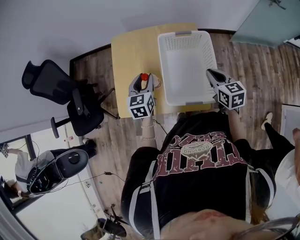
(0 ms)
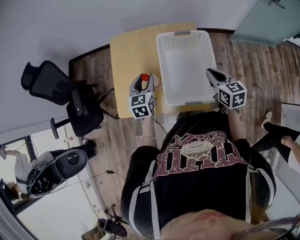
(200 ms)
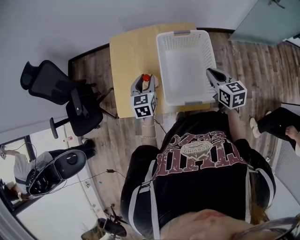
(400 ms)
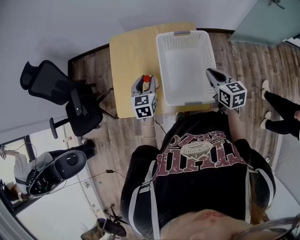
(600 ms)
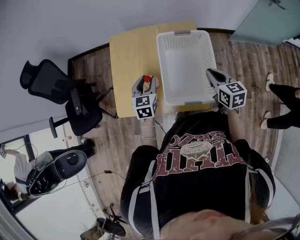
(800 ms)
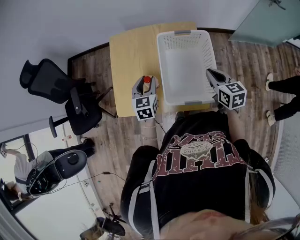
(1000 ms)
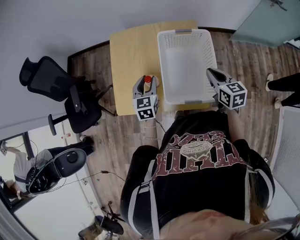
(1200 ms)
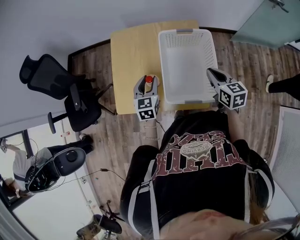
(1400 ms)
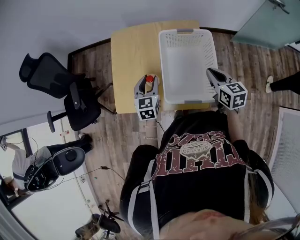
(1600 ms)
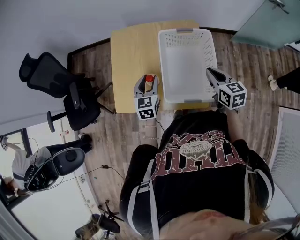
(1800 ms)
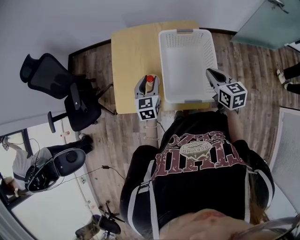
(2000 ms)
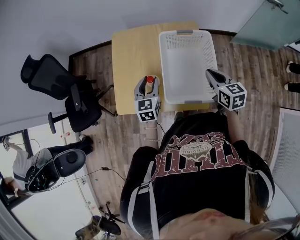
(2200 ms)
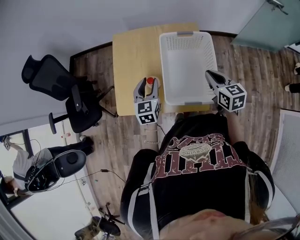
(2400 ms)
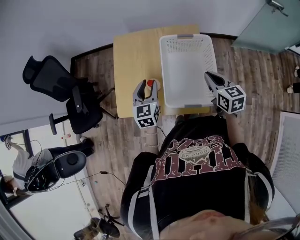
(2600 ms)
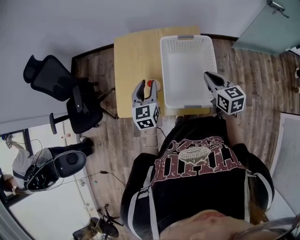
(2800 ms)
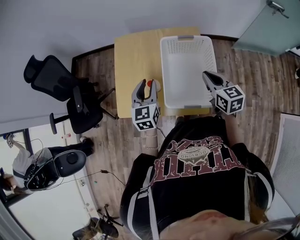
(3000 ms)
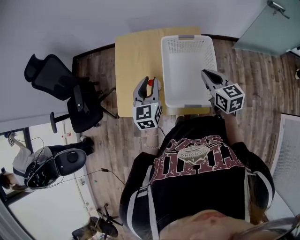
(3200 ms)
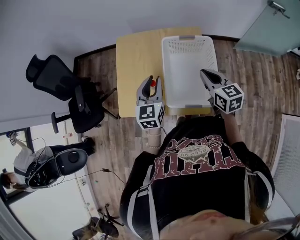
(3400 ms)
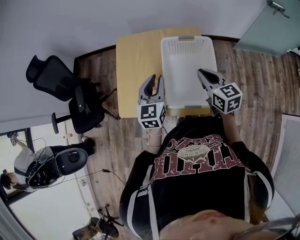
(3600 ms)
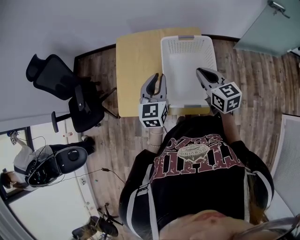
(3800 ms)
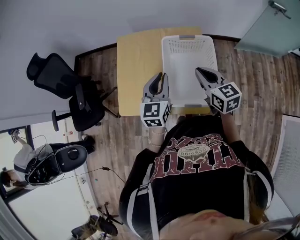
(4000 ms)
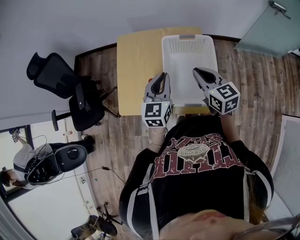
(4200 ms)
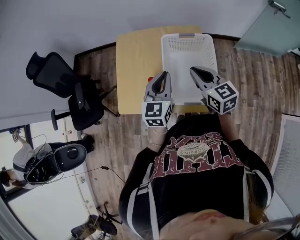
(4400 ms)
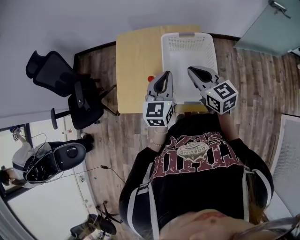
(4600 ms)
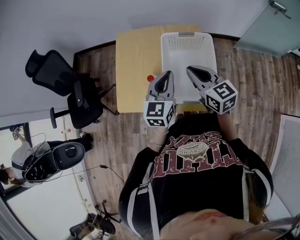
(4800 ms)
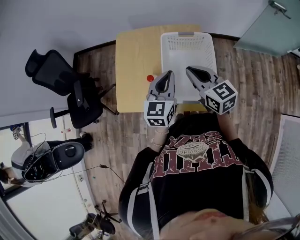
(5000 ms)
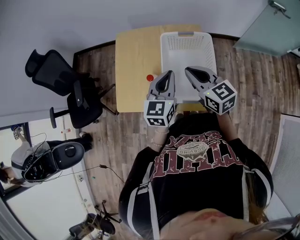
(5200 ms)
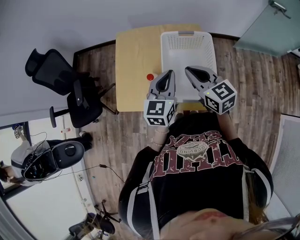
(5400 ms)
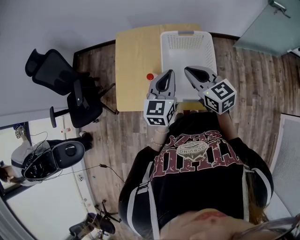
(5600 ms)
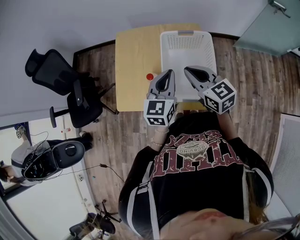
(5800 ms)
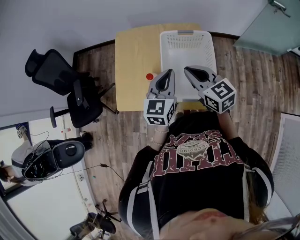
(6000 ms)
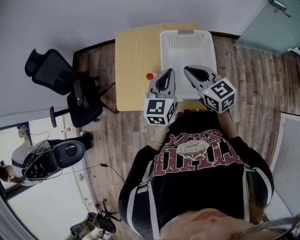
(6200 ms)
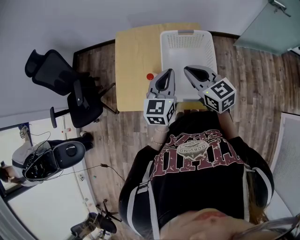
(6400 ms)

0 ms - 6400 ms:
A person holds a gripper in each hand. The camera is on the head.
0 ms - 1600 ms: There are only small adjustments of the grippers.
1600 ms - 3200 ms: The left gripper is displaced upward by roughly 10 cm.
3200 ms - 4800 ms: The left gripper moves to the right, approximately 10 cm, and closes its fingers. The right gripper heads to the left and upward, covering approximately 10 cm.
4800 ms - 6400 ms: There are only small adjustments of the grippers.

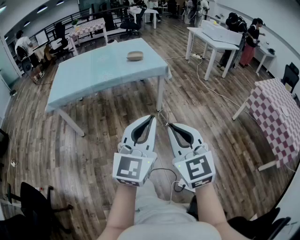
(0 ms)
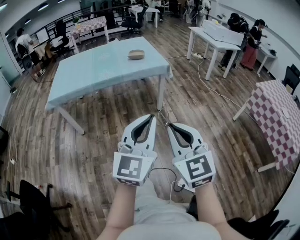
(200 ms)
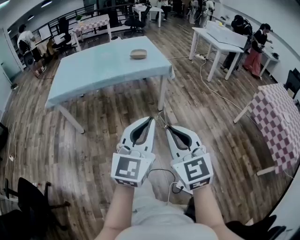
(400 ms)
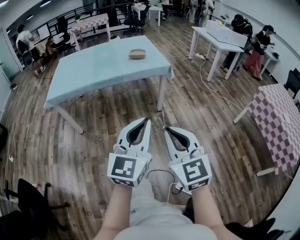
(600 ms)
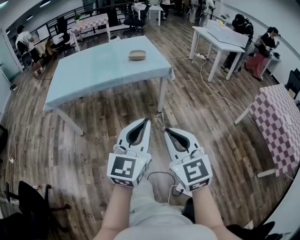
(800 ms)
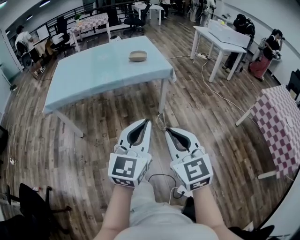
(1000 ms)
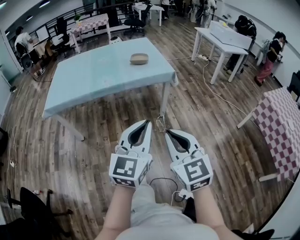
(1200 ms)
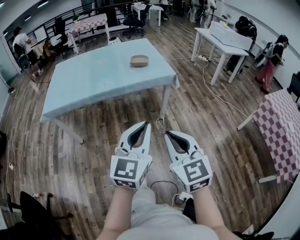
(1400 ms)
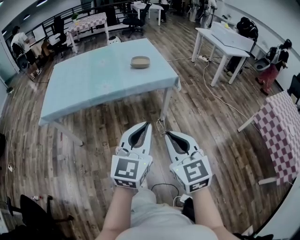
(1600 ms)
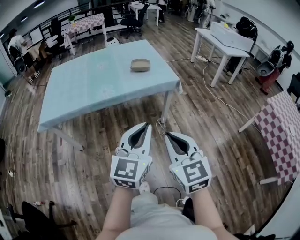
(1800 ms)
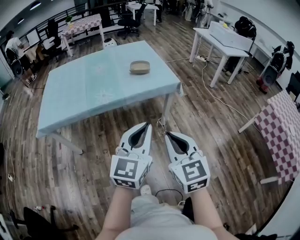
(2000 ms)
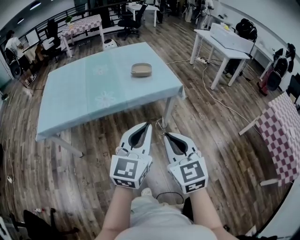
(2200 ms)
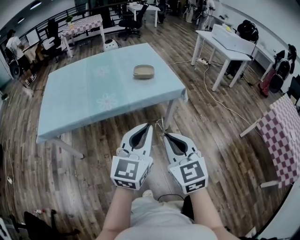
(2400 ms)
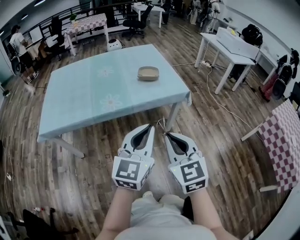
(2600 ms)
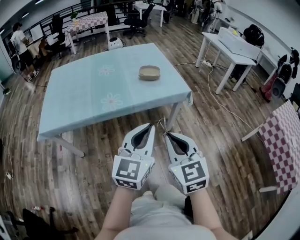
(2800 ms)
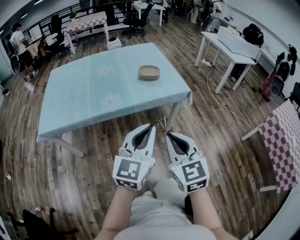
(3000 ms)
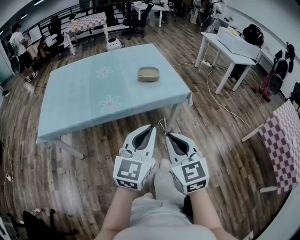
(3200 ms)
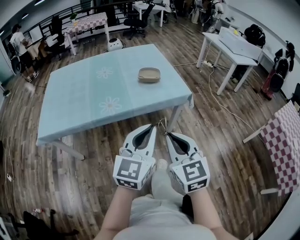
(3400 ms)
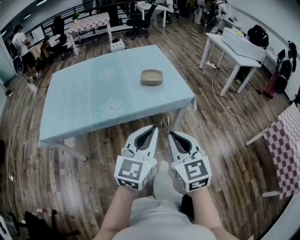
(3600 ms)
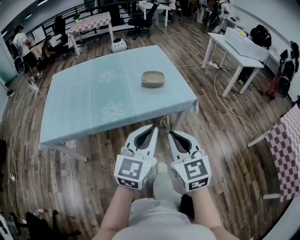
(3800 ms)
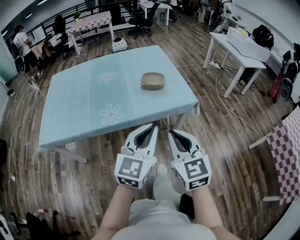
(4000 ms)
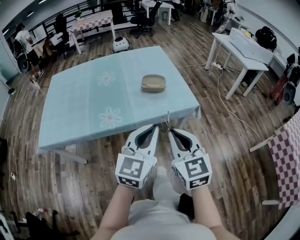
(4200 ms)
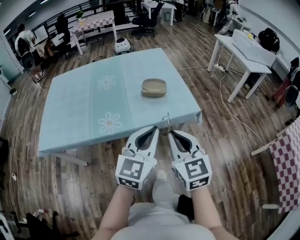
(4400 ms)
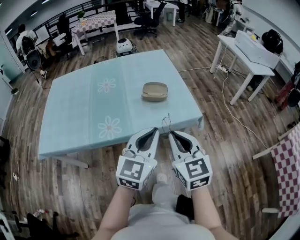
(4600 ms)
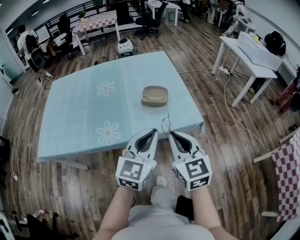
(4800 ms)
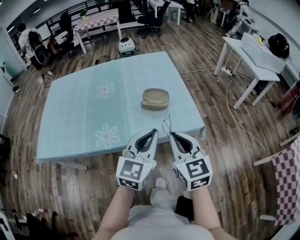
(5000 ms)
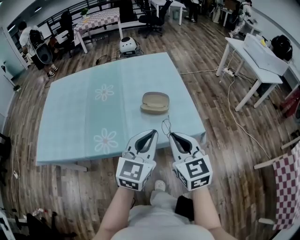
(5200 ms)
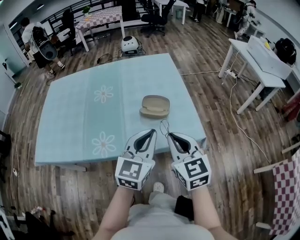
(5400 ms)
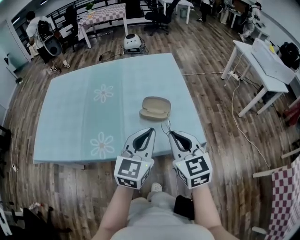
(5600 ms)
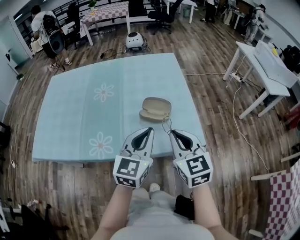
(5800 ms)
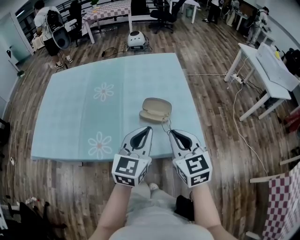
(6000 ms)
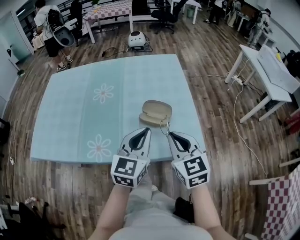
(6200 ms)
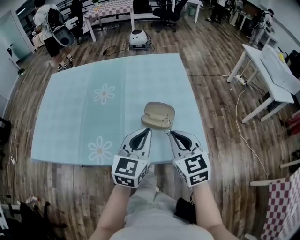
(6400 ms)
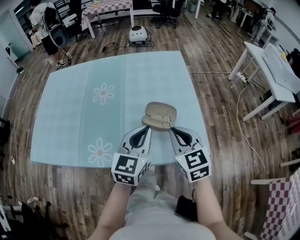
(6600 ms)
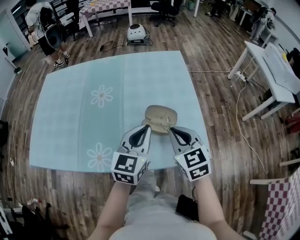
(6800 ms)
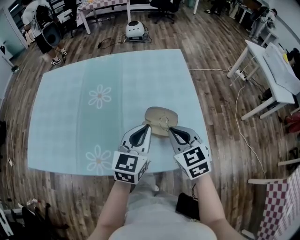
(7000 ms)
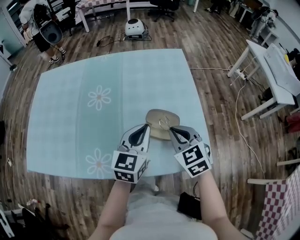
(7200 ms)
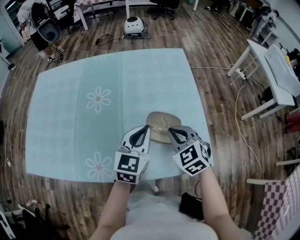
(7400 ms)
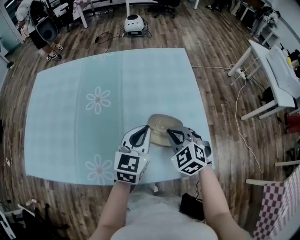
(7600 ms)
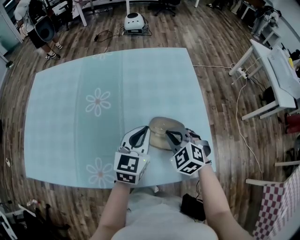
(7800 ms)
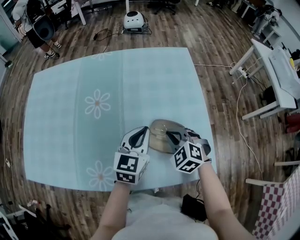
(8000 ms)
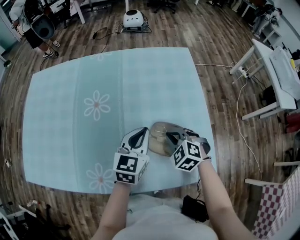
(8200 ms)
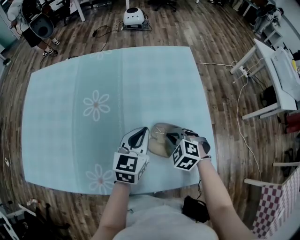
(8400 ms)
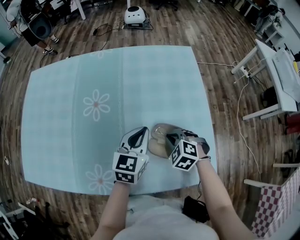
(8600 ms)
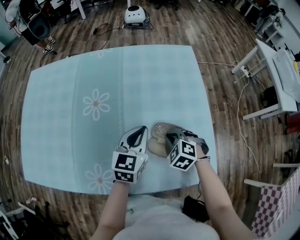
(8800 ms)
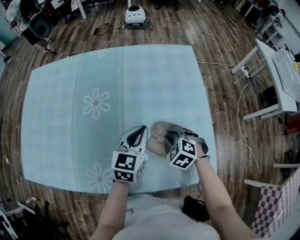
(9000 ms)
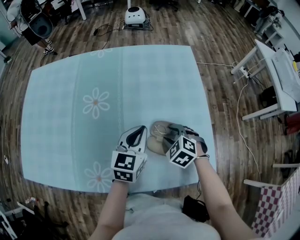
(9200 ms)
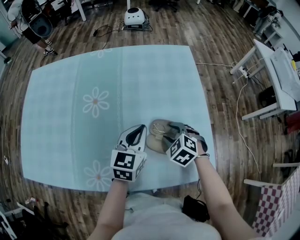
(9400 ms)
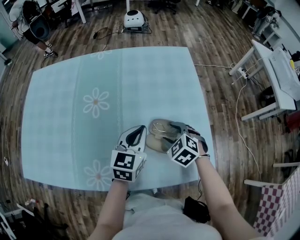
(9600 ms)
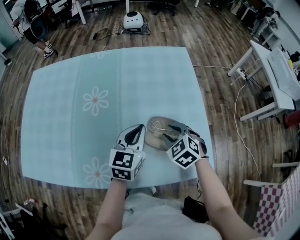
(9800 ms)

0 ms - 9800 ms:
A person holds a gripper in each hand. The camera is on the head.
0 ms - 1400 ms: Both grippers move forward, about 15 cm.
1400 ms - 2800 ms: The grippers both shift forward and to the left by roughly 20 cm.
2800 ms - 4200 ms: Both grippers travel together forward, approximately 15 cm.
4200 ms - 5600 ms: The two grippers go roughly 25 cm forward.
5600 ms - 7000 ms: Both grippers move forward and downward, some 15 cm.
7000 ms - 8400 ms: The left gripper moves forward and downward, approximately 15 cm. Meanwhile the right gripper travels downward and forward by approximately 15 cm, and rotates about 40 degrees.
8400 ms - 9800 ms: The right gripper opens its fingers.

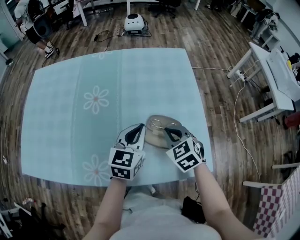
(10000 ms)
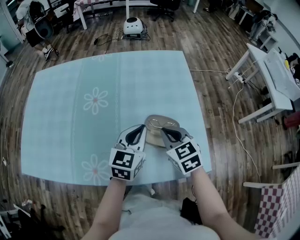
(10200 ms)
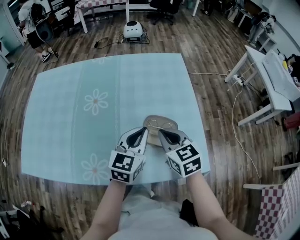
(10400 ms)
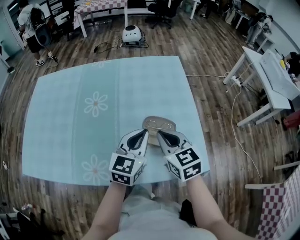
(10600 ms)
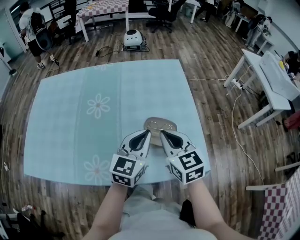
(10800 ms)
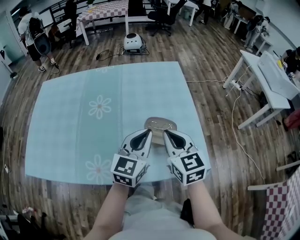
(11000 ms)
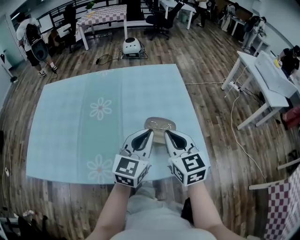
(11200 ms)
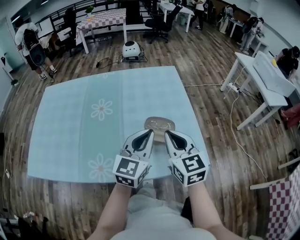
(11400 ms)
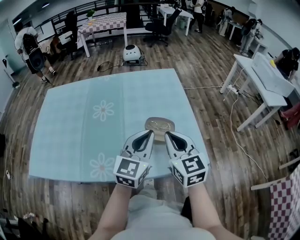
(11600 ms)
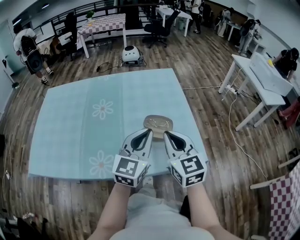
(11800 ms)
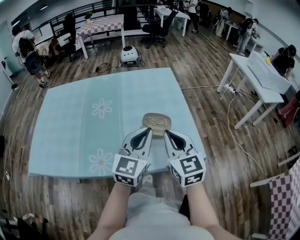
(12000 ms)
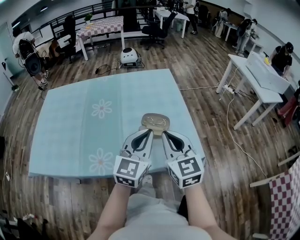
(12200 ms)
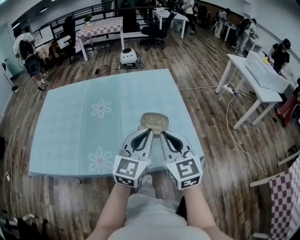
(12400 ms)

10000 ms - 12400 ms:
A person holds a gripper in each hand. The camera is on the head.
10000 ms - 11200 ms: Both grippers move upward and backward, about 15 cm. The right gripper changes its angle by approximately 30 degrees.
11200 ms - 12400 ms: The left gripper travels backward by approximately 10 cm. The right gripper is displaced backward and upward by roughly 10 cm.

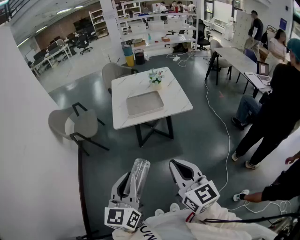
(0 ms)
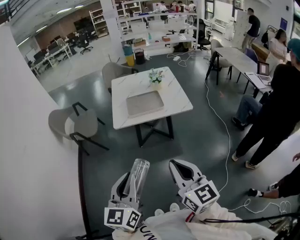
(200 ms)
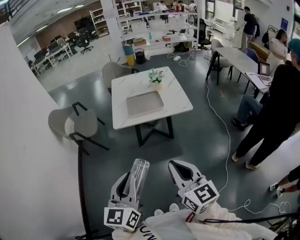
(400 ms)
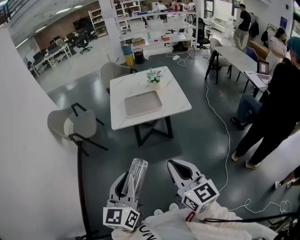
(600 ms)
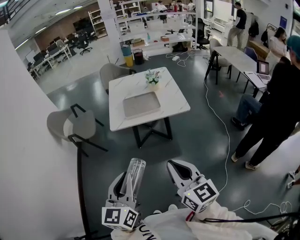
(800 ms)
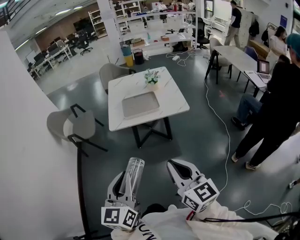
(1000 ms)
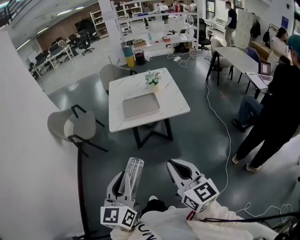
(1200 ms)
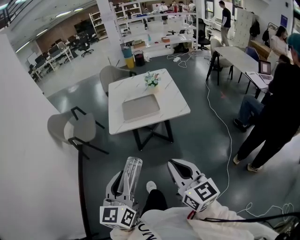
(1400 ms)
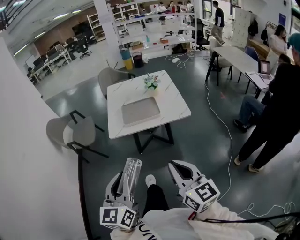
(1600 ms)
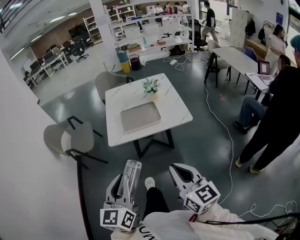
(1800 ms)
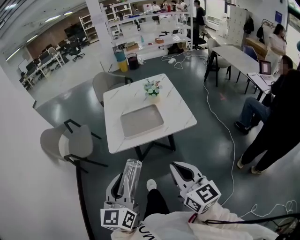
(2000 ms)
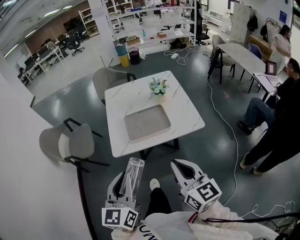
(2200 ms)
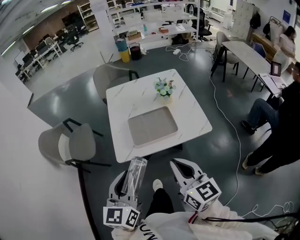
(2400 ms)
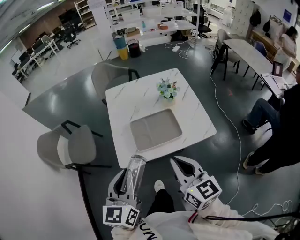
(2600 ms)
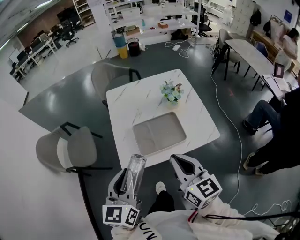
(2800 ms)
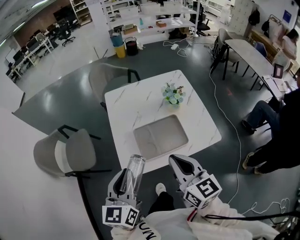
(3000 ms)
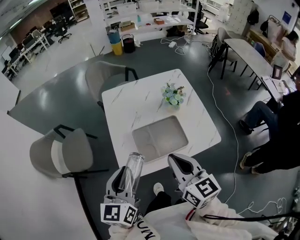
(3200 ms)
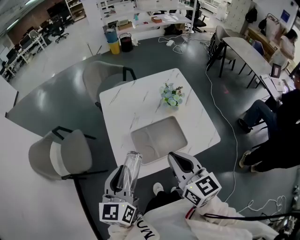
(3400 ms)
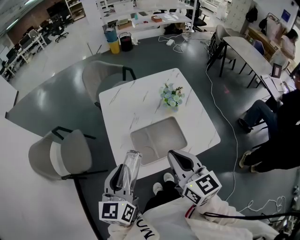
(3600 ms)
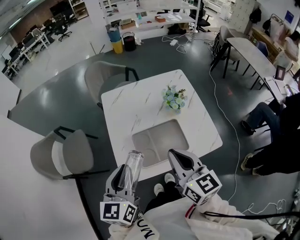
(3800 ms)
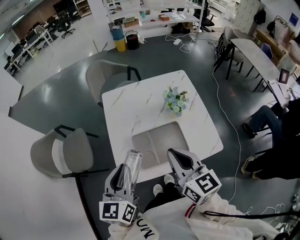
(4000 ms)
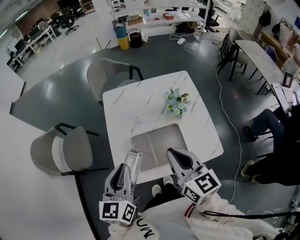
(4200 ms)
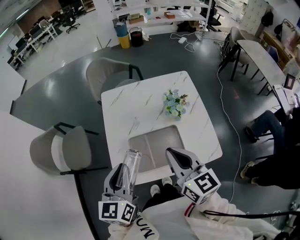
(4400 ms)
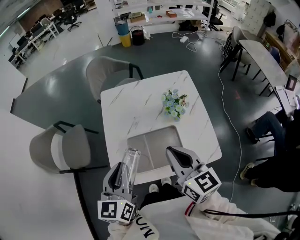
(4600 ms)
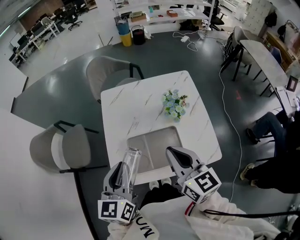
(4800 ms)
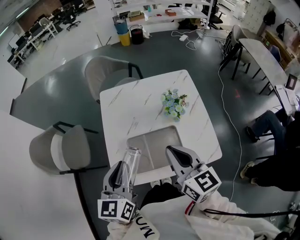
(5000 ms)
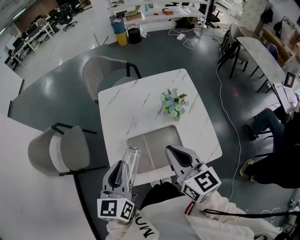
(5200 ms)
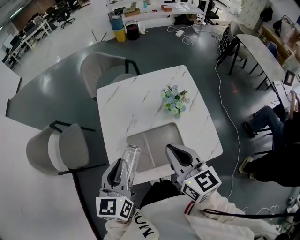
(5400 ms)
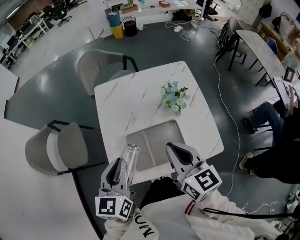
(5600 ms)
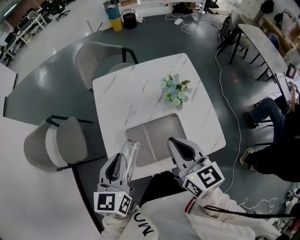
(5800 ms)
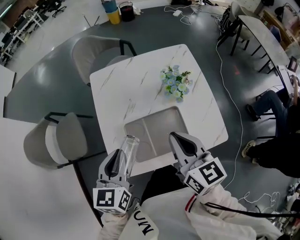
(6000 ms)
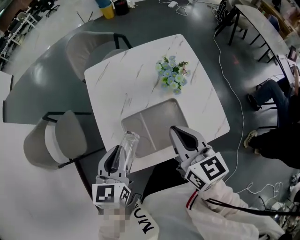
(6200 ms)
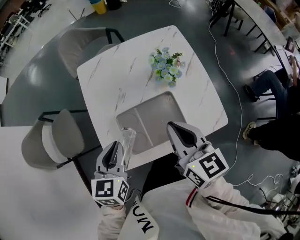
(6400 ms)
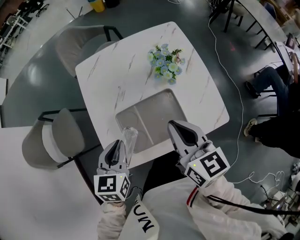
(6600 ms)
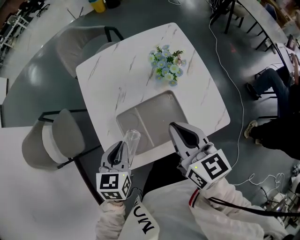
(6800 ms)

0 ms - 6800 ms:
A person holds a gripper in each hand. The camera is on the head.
0 ms - 1400 ms: The left gripper shifts by approximately 5 cm; the right gripper is displaced to the right by about 5 cm.
1400 ms - 2800 ms: The two grippers travel together, forward, approximately 40 cm.
2800 ms - 4000 ms: Both grippers move forward, about 15 cm.
4000 ms - 5400 ms: Both grippers move forward, roughly 5 cm.
5400 ms - 6800 ms: The right gripper travels downward by approximately 5 cm; the left gripper heads downward, covering approximately 15 cm, and turns by some 30 degrees.
